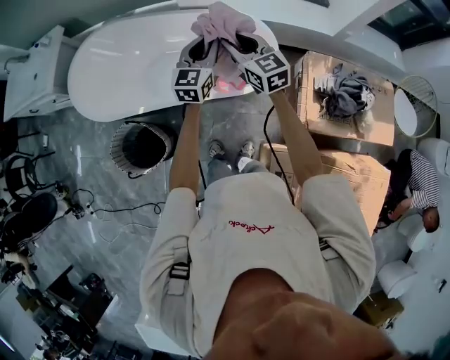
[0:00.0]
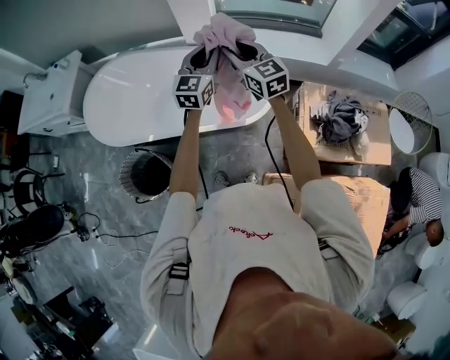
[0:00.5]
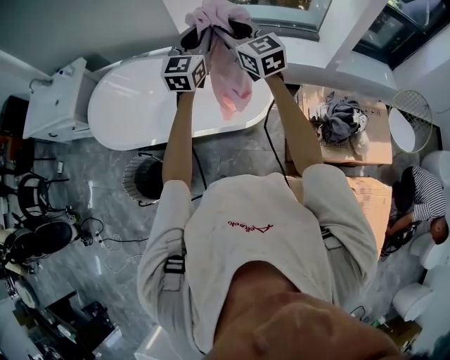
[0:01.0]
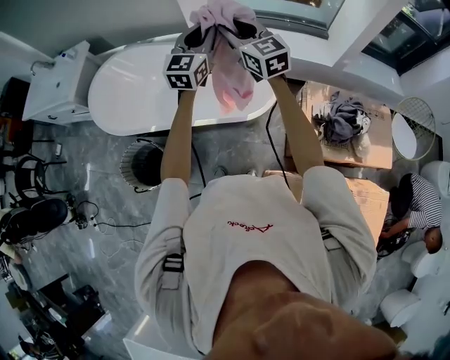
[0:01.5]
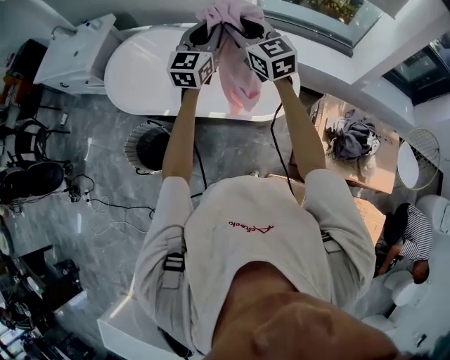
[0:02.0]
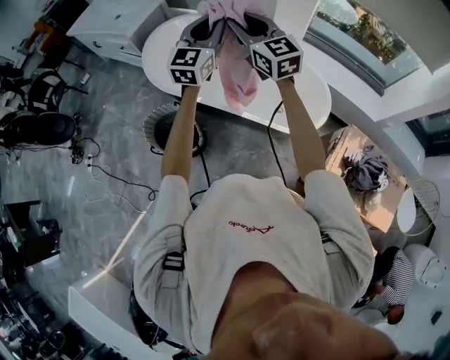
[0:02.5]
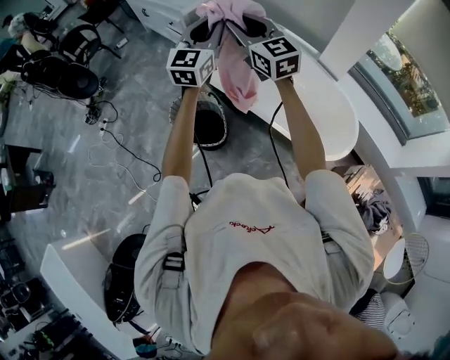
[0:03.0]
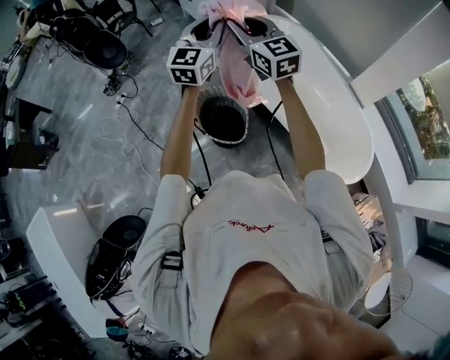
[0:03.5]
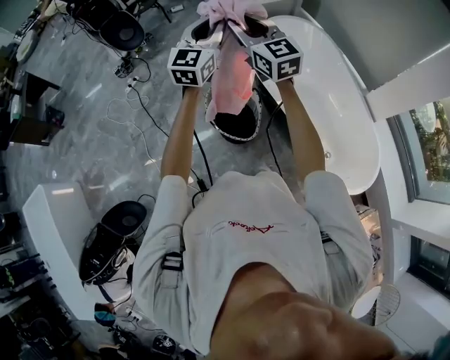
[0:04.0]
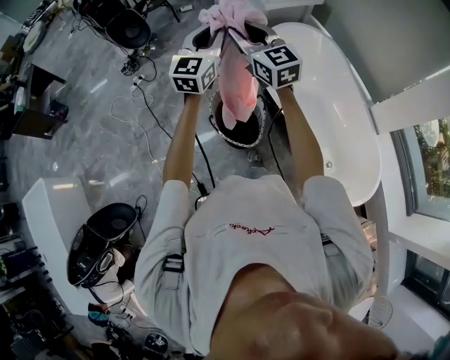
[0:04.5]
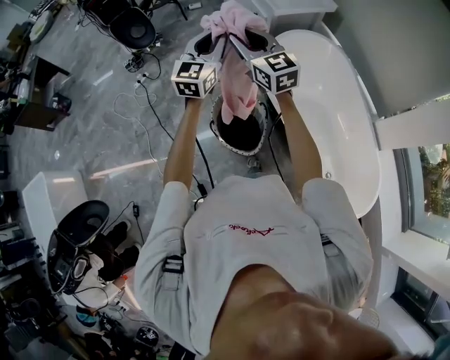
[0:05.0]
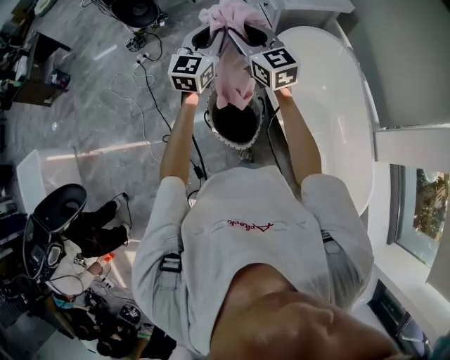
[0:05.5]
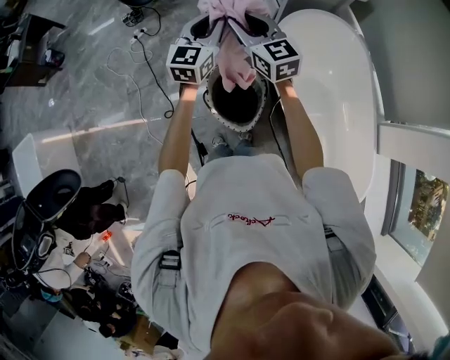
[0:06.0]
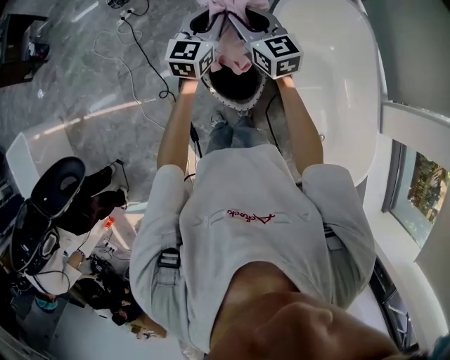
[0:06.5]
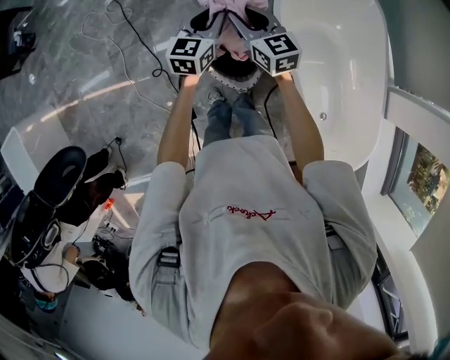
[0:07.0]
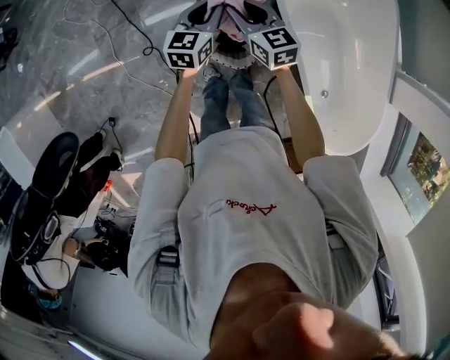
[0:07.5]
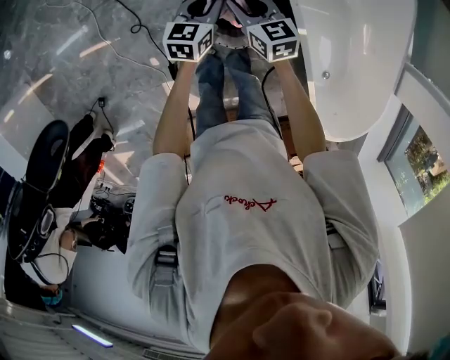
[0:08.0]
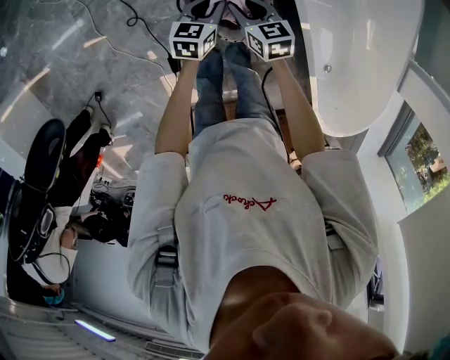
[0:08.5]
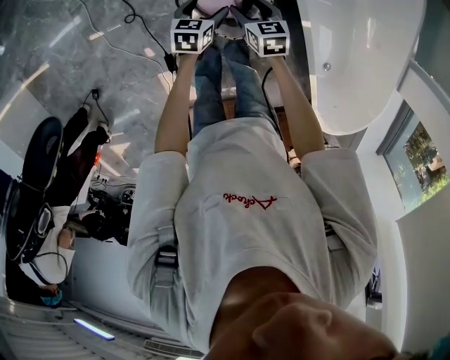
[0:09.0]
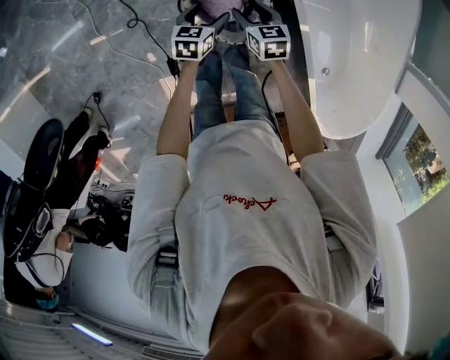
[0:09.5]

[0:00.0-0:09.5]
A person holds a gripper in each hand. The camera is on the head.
0:00.0 to 0:02.0: The two grippers go approximately 20 cm upward and to the left.
0:02.0 to 0:04.0: The pair of grippers is taken approximately 60 cm. The right gripper turns by roughly 50 degrees, while the left gripper turns by about 50 degrees.
0:04.0 to 0:05.5: The grippers both shift forward and downward by roughly 15 cm.
0:05.5 to 0:07.5: The grippers both shift downward by some 30 cm. The left gripper changes its angle by approximately 30 degrees. Meanwhile the right gripper changes its angle by about 30 degrees.
0:07.5 to 0:09.5: The left gripper heads downward and backward, covering some 20 cm, rotates about 20 degrees, and opens its fingers. Meanwhile the right gripper is displaced downward by about 20 cm, and swivels roughly 20 degrees.

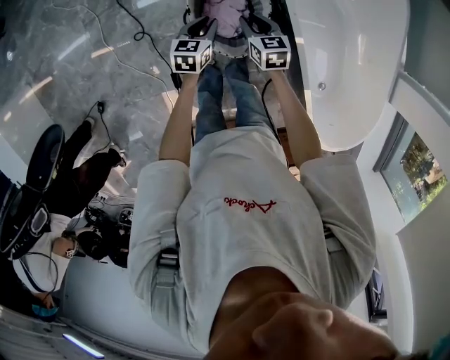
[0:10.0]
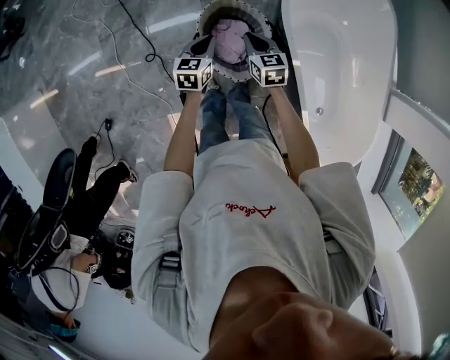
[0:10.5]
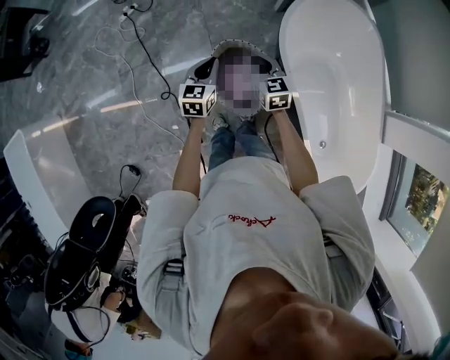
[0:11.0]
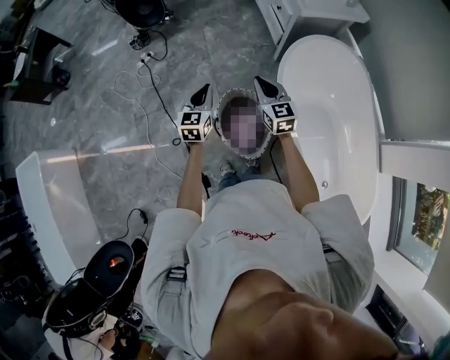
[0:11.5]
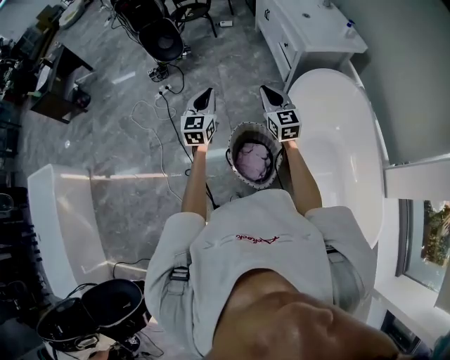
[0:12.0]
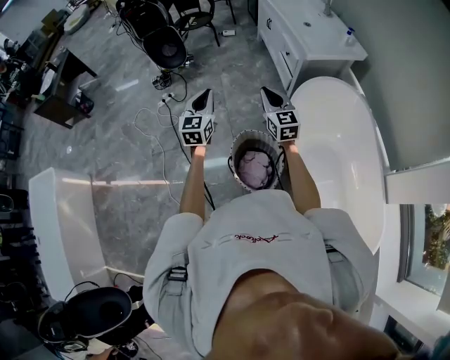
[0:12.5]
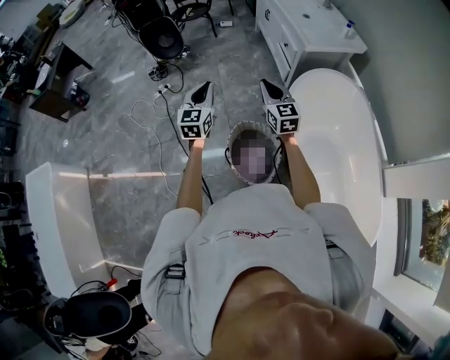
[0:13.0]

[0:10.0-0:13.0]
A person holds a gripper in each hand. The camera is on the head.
0:10.0 to 0:11.5: The two grippers go approximately 25 cm upward. The left gripper swivels about 30 degrees. The right gripper rotates some 30 degrees.
0:11.5 to 0:13.0: The grippers both shift upward by some 10 cm.

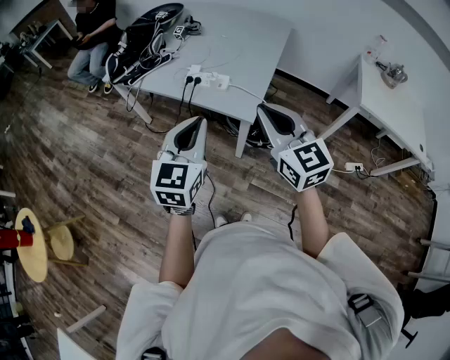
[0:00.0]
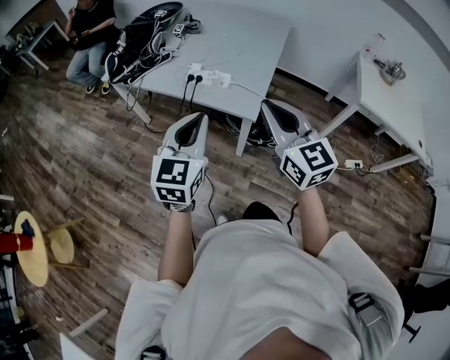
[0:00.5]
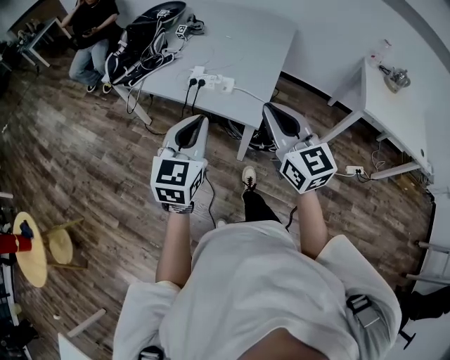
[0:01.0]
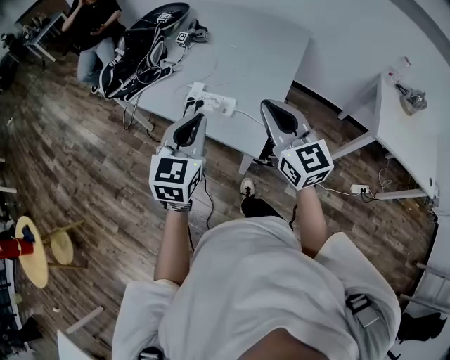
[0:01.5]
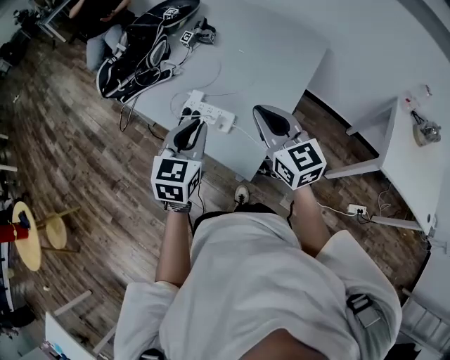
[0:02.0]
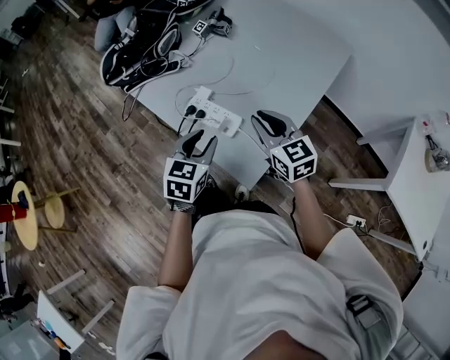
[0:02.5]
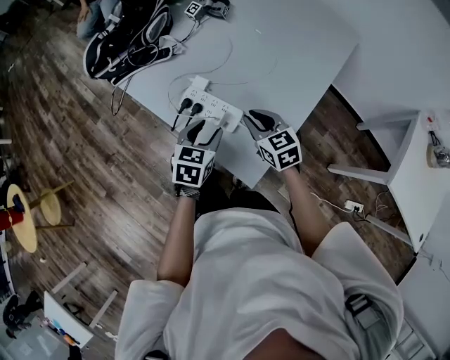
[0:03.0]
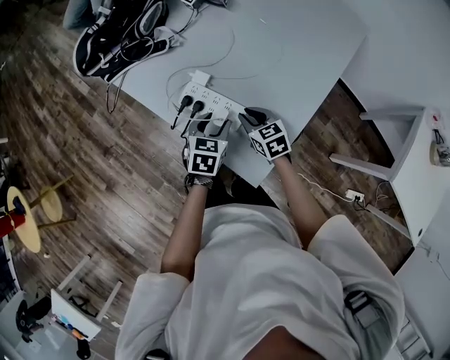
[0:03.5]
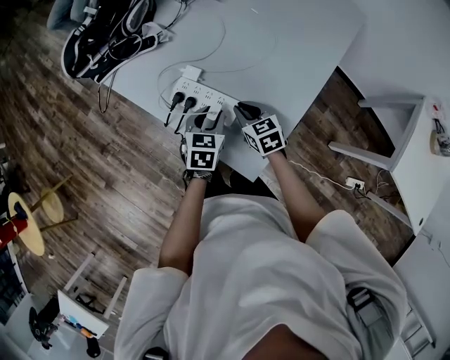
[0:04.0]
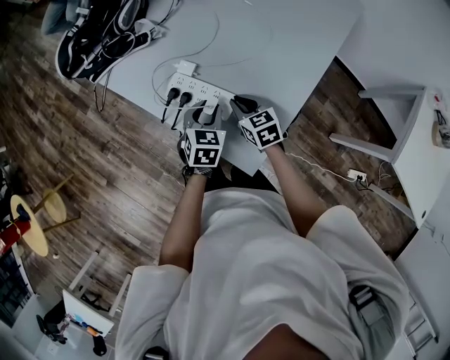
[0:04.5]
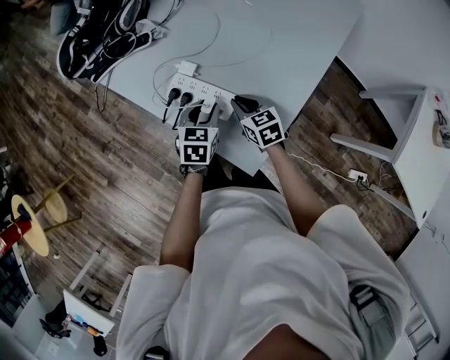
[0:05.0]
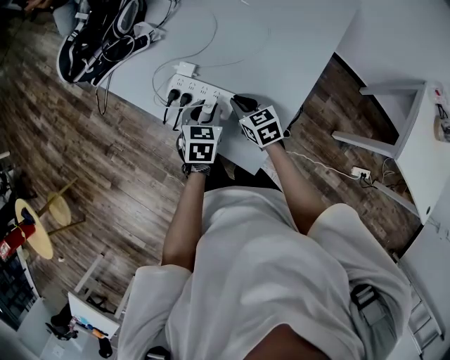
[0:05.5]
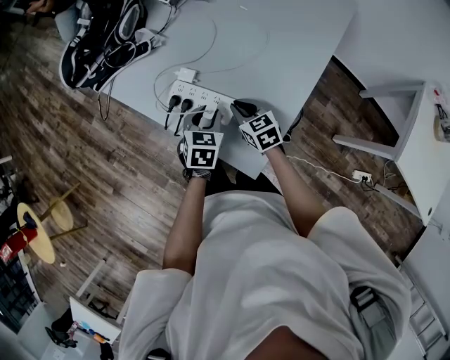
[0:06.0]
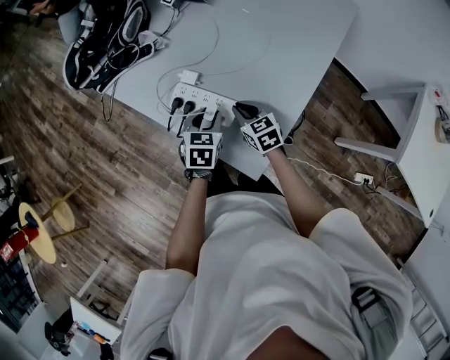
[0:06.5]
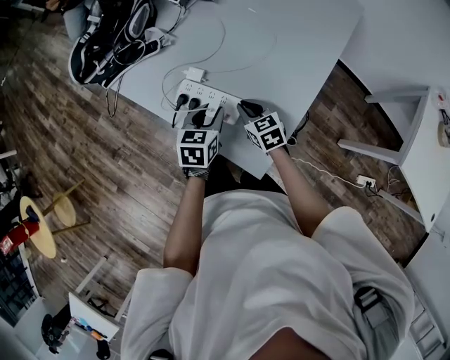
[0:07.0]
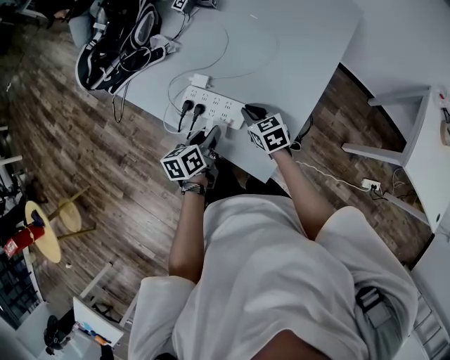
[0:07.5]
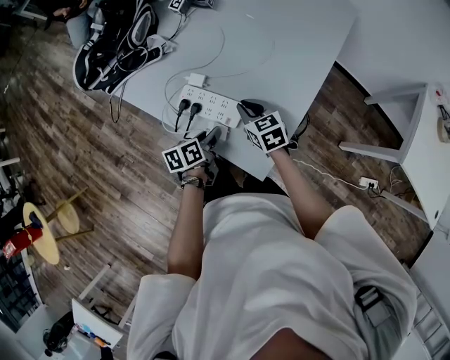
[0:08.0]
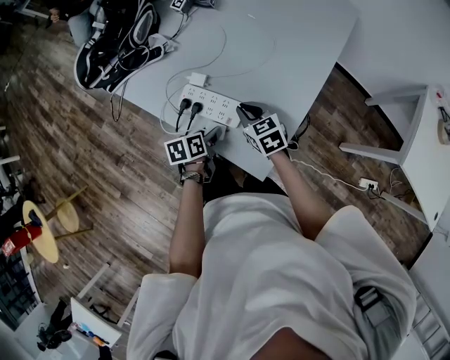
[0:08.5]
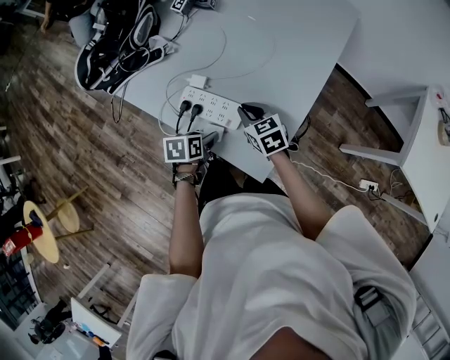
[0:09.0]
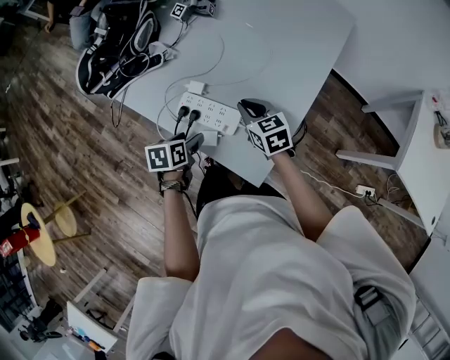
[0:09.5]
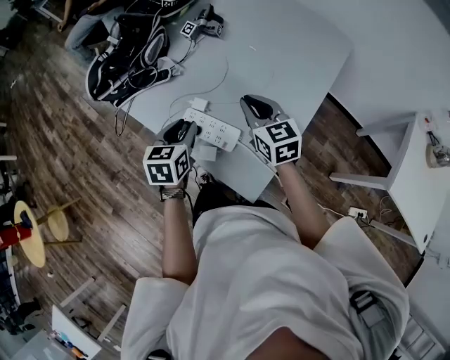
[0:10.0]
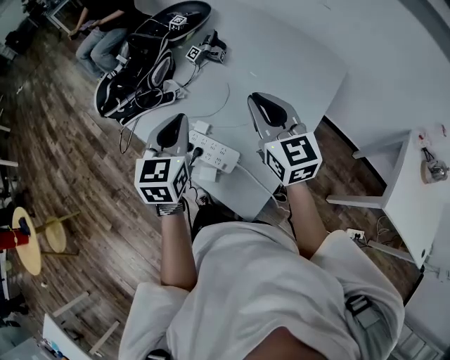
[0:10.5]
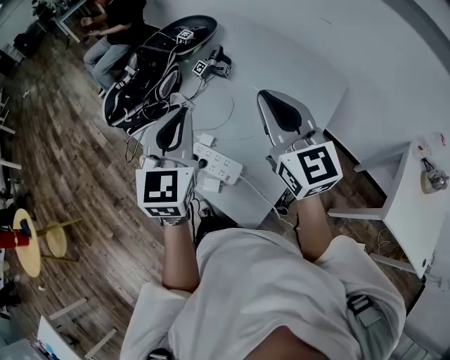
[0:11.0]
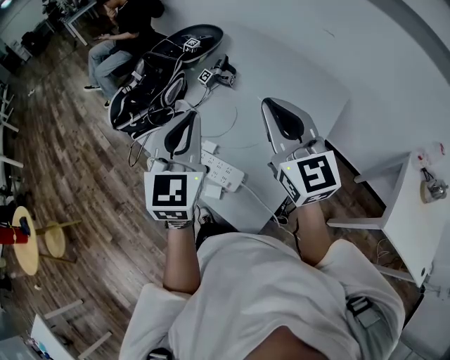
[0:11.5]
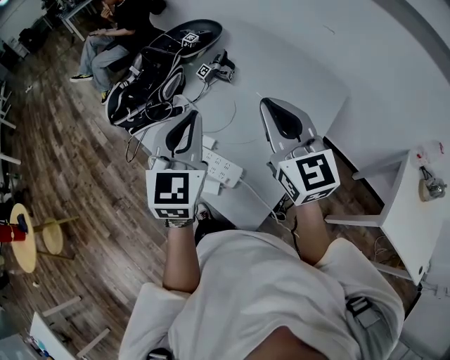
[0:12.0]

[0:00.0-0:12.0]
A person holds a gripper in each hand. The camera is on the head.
0:00.0 to 0:02.0: The grippers both shift forward by about 30 cm.
0:02.0 to 0:04.0: The right gripper shifts about 35 cm downward, and tips its fingers downward by some 30 degrees; the left gripper travels downward and forward by some 30 cm, changes its angle by approximately 30 degrees, and opens its fingers.
0:04.0 to 0:06.0: The grippers stay close to where they were, moving slightly.
0:06.0 to 0:08.0: The left gripper changes place by about 5 cm, and rolls counterclockwise, seen from behind, by approximately 50 degrees.
0:08.0 to 0:10.0: The left gripper is displaced upward and forward by about 15 cm, swivels approximately 40 degrees, and opens, then closes once more; the right gripper travels upward by some 15 cm.
0:10.0 to 0:12.0: The two grippers go roughly 25 cm upward. The right gripper swivels about 30 degrees; the left gripper turns by some 40 degrees, and closes its fingers.

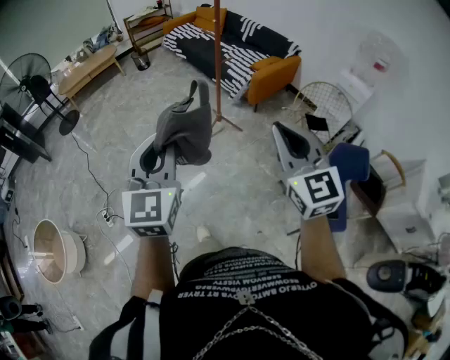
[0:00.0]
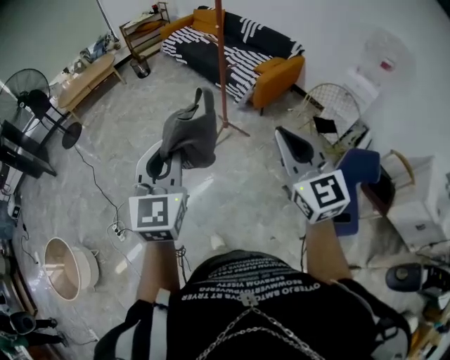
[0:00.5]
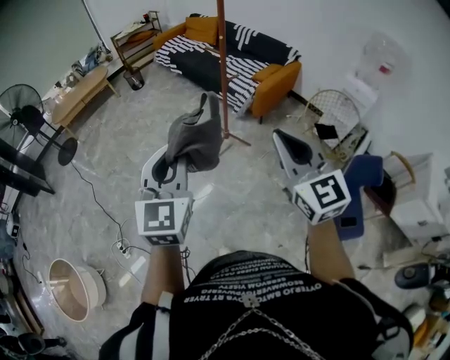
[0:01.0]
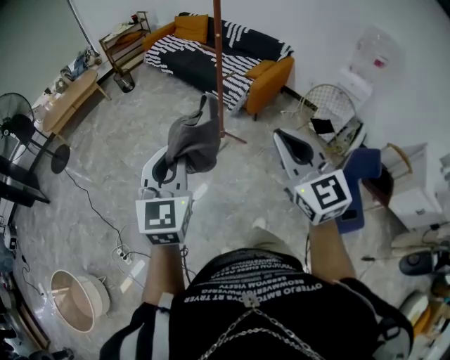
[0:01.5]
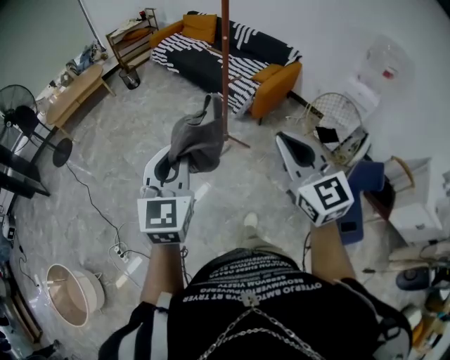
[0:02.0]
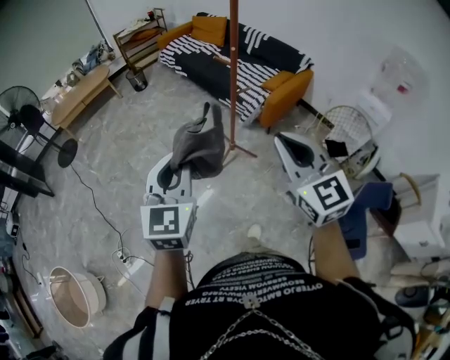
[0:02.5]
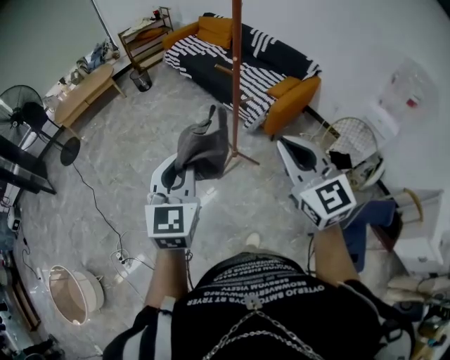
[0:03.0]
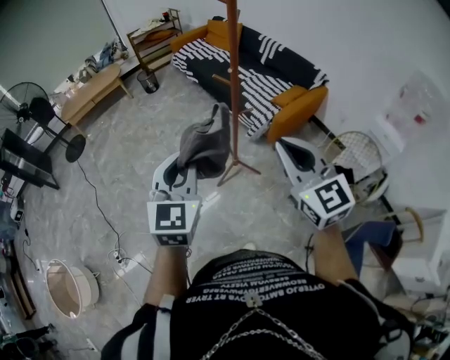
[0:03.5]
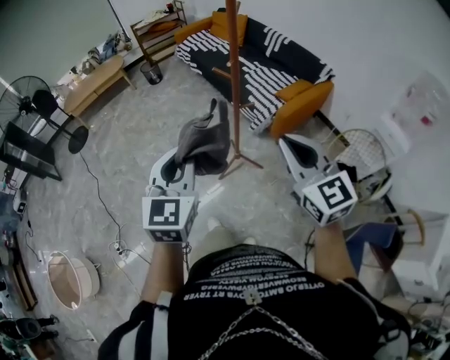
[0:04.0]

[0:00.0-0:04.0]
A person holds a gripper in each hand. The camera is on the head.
0:00.0 to 0:02.0: The left gripper travels forward by roughly 25 cm. The right gripper heads forward and to the left, covering approximately 25 cm.
0:02.0 to 0:04.0: The grippers both shift forward and to the right by approximately 25 cm.
